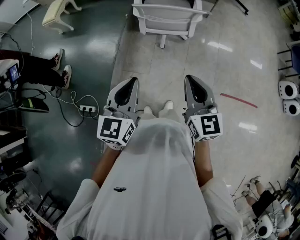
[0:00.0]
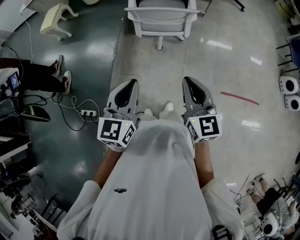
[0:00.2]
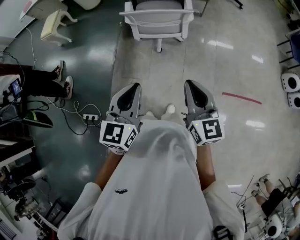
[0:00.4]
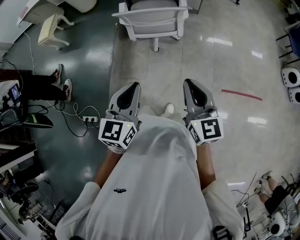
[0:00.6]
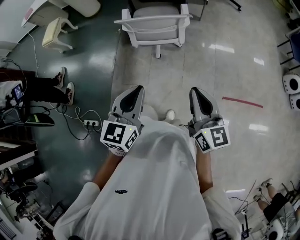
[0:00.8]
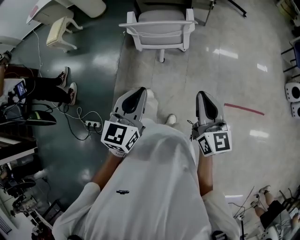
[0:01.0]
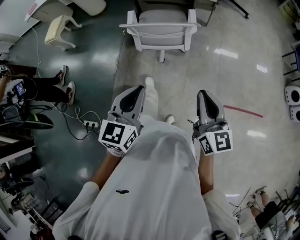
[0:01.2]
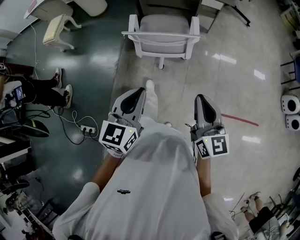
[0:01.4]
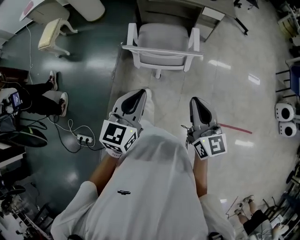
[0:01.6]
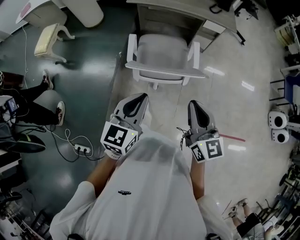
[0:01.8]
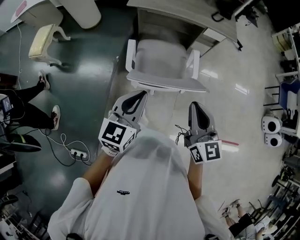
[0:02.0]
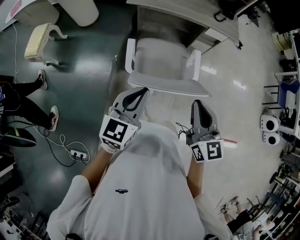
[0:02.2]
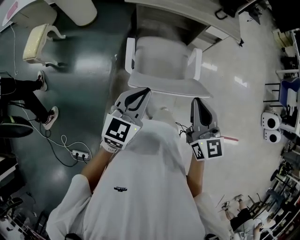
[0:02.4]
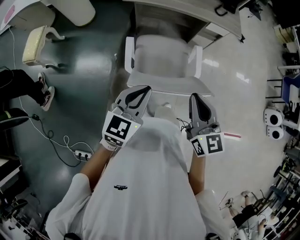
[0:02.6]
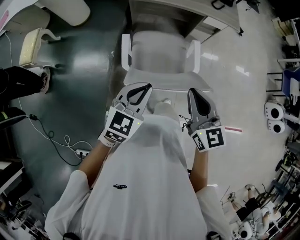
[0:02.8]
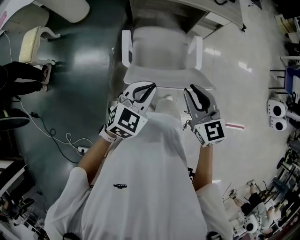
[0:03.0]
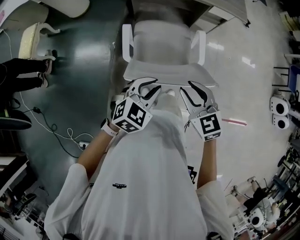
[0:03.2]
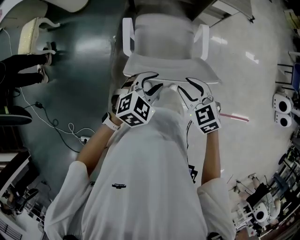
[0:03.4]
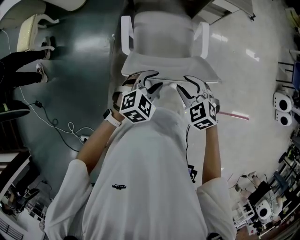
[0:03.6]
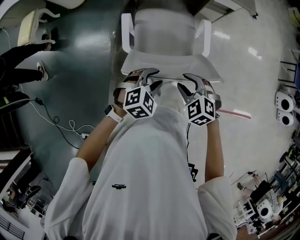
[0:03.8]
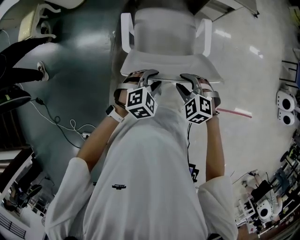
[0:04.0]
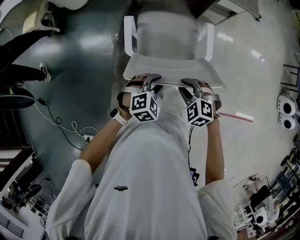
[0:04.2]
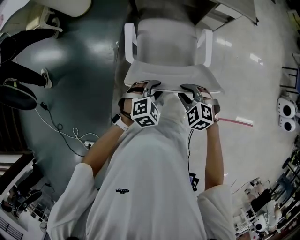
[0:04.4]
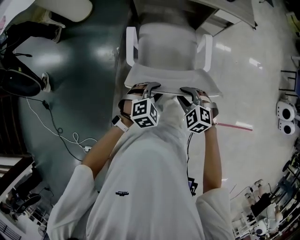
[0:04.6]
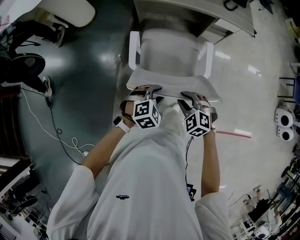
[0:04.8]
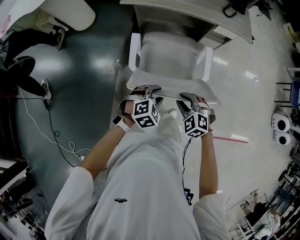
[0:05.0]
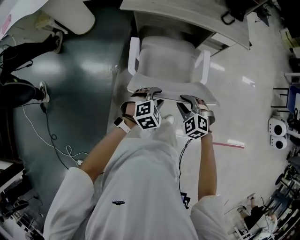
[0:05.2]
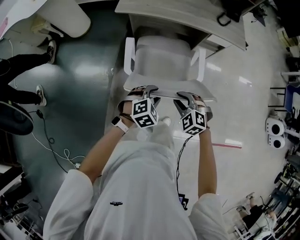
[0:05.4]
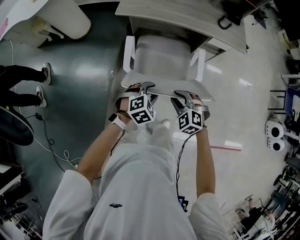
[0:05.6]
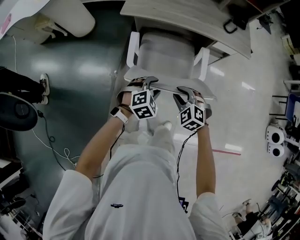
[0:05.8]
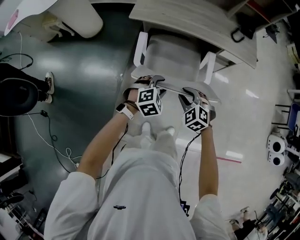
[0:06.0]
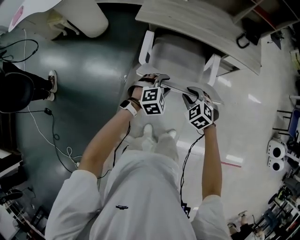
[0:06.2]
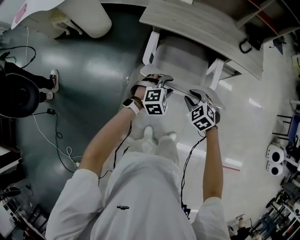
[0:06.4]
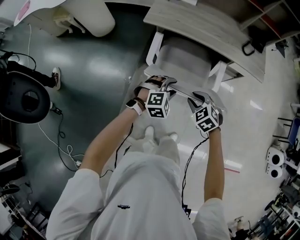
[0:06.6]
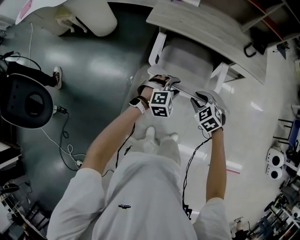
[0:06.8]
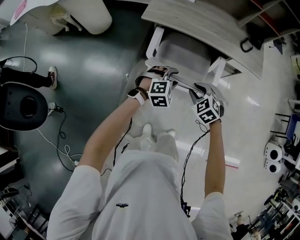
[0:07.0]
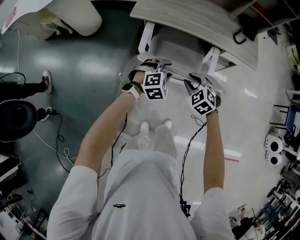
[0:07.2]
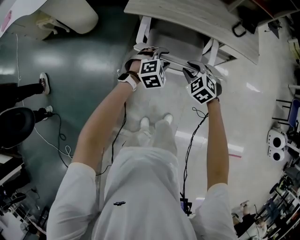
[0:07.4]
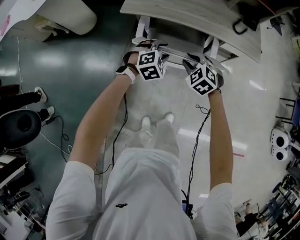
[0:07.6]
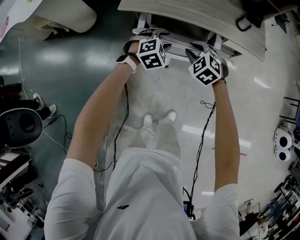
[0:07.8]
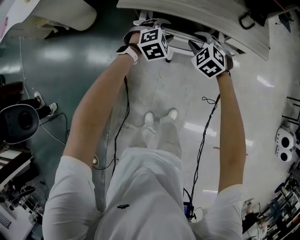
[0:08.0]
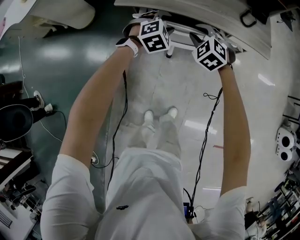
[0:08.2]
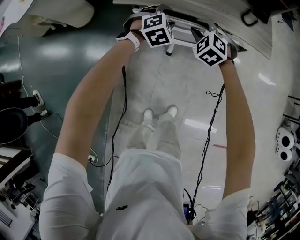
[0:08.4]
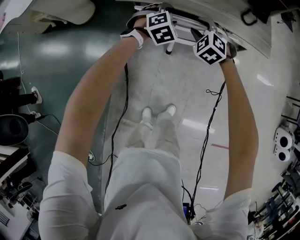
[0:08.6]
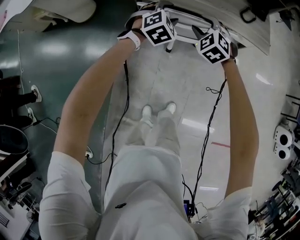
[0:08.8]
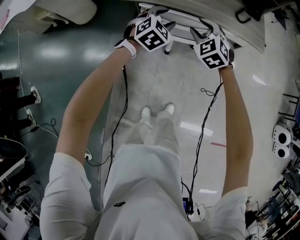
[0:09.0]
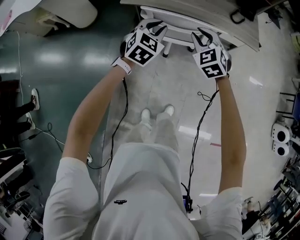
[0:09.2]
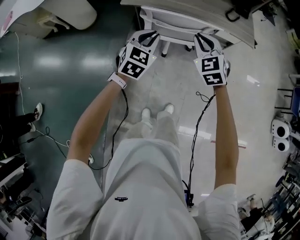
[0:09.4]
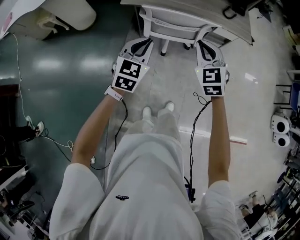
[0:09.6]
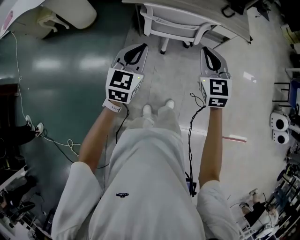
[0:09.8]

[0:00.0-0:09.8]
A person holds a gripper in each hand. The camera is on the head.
0:00.0 to 0:01.4: Both grippers travel together forward and to the right, approximately 15 cm.
0:01.4 to 0:02.8: The left gripper travels forward by approximately 30 cm, and rotates about 20 degrees. The right gripper is displaced forward and to the left by some 35 cm.
0:02.8 to 0:04.2: Both grippers move downward, some 20 cm. The left gripper tips its fingers downward by some 30 degrees, and opens up. Meanwhile the right gripper points its fingers roughly 40 degrees further downward, and opens up.
0:04.2 to 0:05.6: The two grippers go approximately 15 cm forward.
0:05.6 to 0:07.0: Both grippers travel together forward, some 15 cm.
0:07.0 to 0:08.4: Both grippers travel together forward, roughly 20 cm.
0:08.4 to 0:09.8: The two grippers go approximately 35 cm backward and upward. The left gripper tips its fingers upward by approximately 30 degrees, and closes. The right gripper swivels some 40 degrees, and closes up.

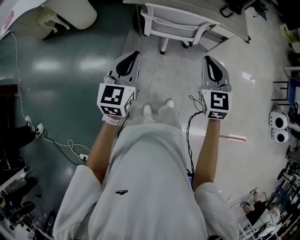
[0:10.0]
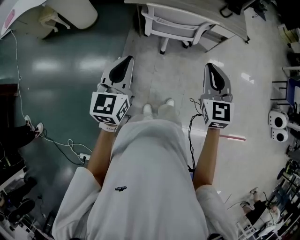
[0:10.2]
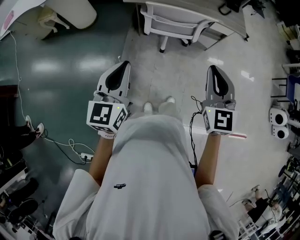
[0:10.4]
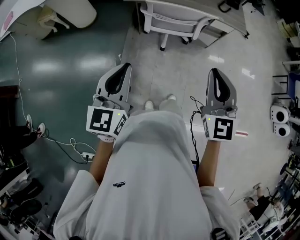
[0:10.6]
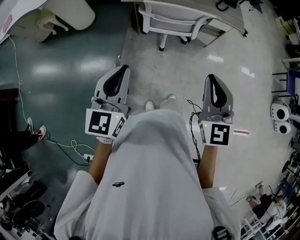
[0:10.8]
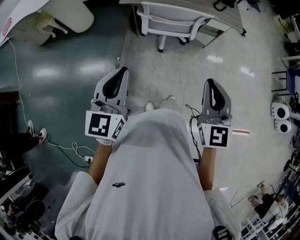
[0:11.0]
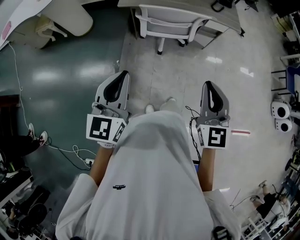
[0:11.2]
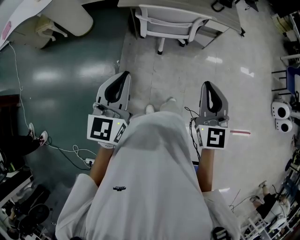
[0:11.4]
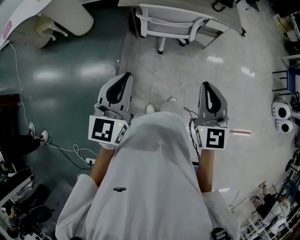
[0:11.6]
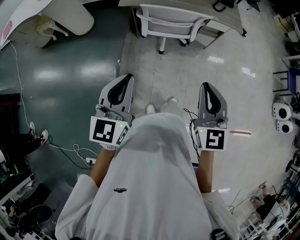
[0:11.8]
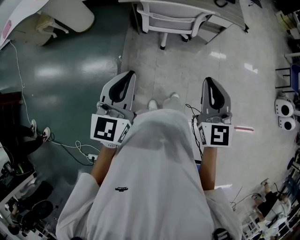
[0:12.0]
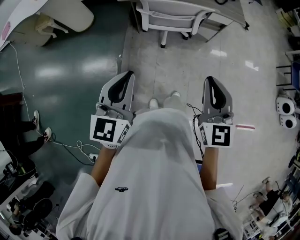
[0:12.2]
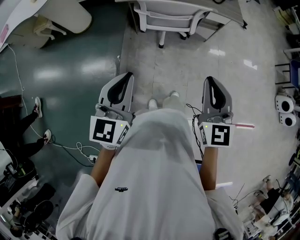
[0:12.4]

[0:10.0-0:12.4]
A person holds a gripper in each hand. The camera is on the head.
0:10.0 to 0:11.2: The right gripper shifts about 15 cm backward. Meanwhile the left gripper is displaced backward and upward by some 10 cm.
0:11.2 to 0:12.4: The grippers stay close to where they were, moving slightly.

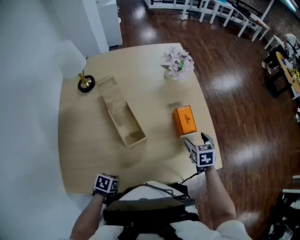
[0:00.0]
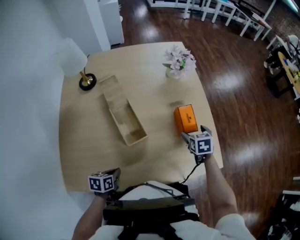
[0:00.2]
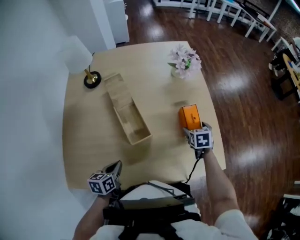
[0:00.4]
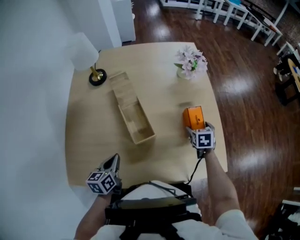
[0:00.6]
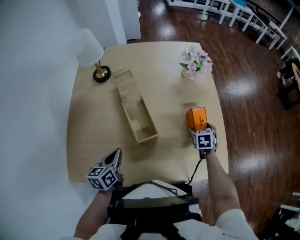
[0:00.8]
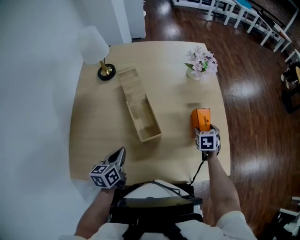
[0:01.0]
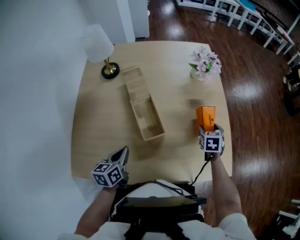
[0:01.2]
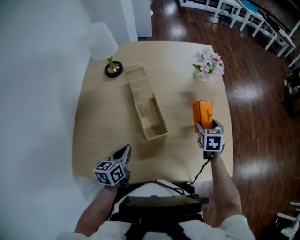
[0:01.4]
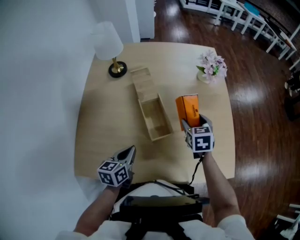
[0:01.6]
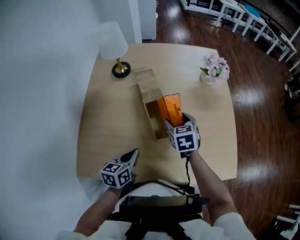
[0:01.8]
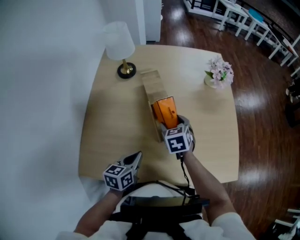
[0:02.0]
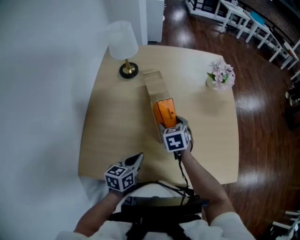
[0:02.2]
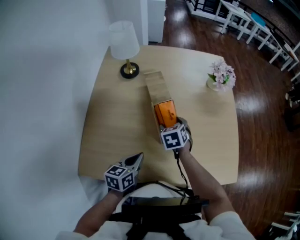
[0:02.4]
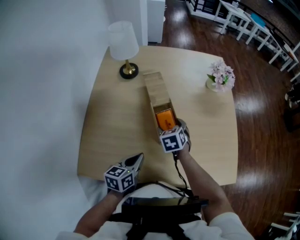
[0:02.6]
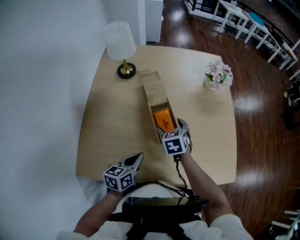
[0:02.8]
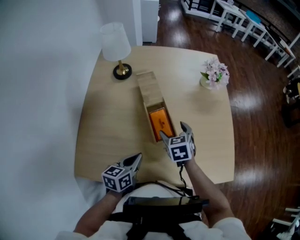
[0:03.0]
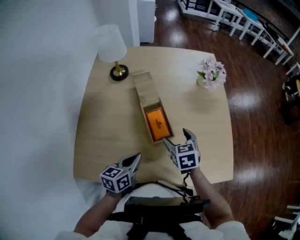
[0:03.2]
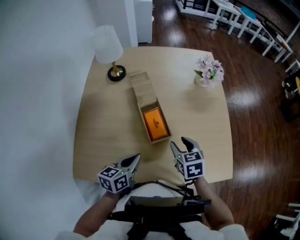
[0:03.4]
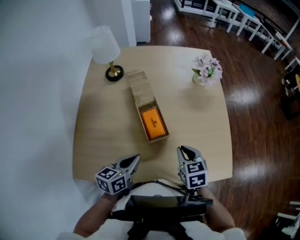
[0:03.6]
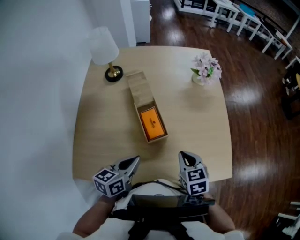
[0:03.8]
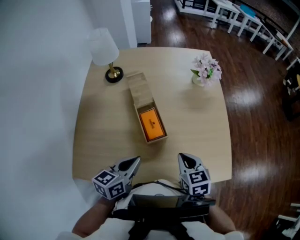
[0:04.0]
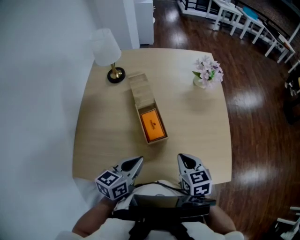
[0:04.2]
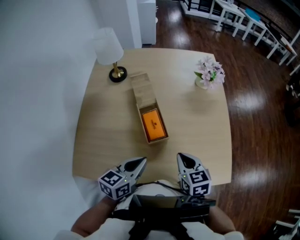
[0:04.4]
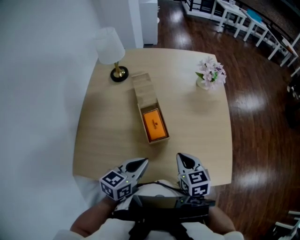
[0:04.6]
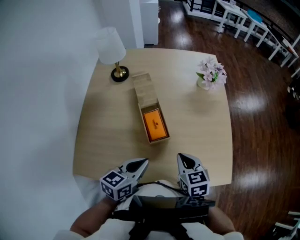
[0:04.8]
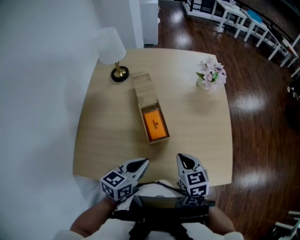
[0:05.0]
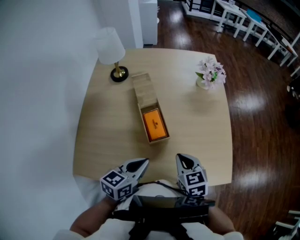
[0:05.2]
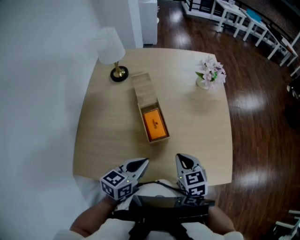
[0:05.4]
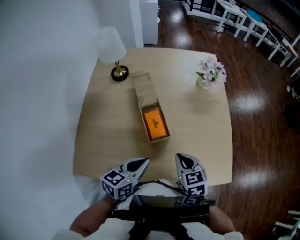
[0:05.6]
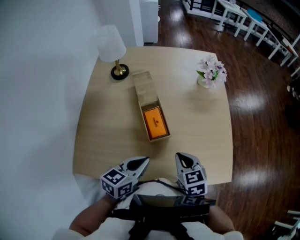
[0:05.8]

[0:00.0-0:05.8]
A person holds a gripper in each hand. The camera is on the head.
0:00.0 to 0:01.4: The right gripper moves some 5 cm downward and comes back. Meanwhile the left gripper moves upward, approximately 15 cm, and tilts its fingers roughly 40 degrees upward.
0:01.4 to 0:02.8: The right gripper travels to the left by some 25 cm.
0:02.8 to 0:04.4: The left gripper moves to the right and upward, approximately 10 cm; the right gripper travels to the right, backward and upward by about 20 cm, and closes.
0:04.4 to 0:05.8: There are only small adjustments of the grippers.

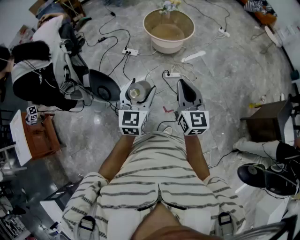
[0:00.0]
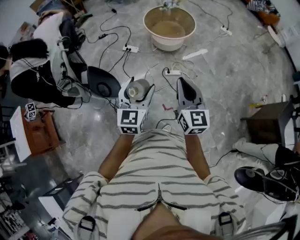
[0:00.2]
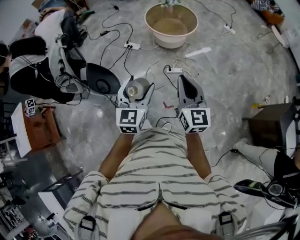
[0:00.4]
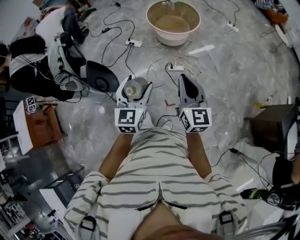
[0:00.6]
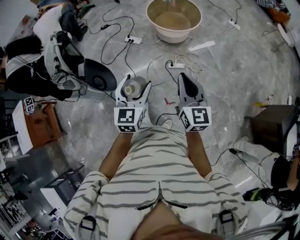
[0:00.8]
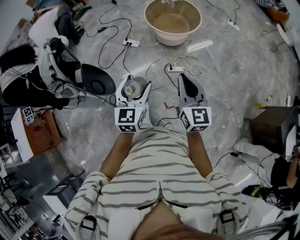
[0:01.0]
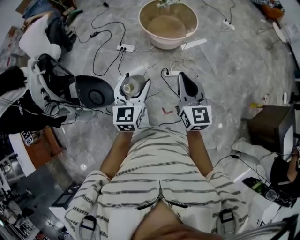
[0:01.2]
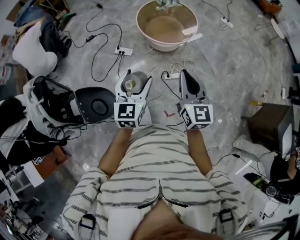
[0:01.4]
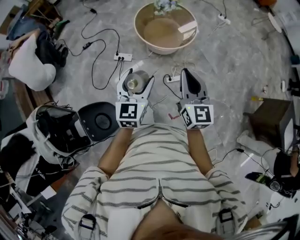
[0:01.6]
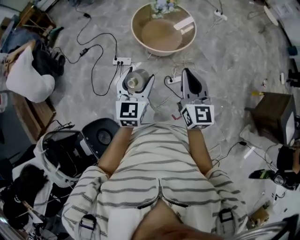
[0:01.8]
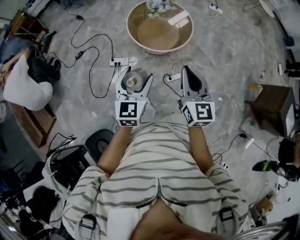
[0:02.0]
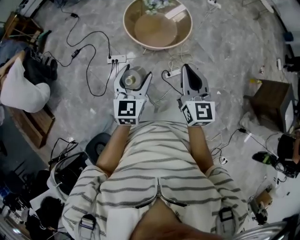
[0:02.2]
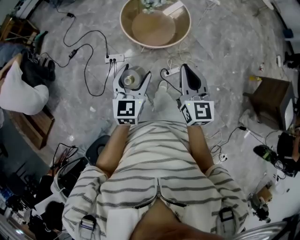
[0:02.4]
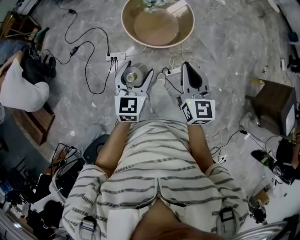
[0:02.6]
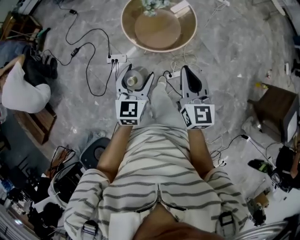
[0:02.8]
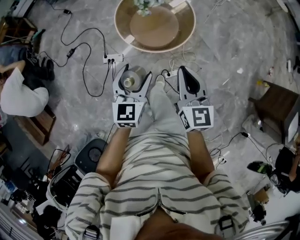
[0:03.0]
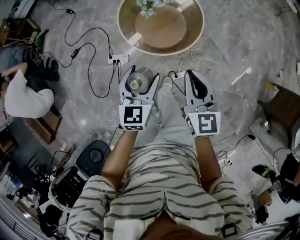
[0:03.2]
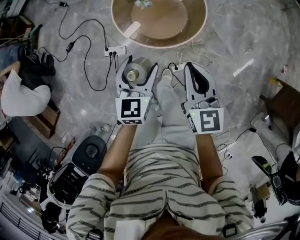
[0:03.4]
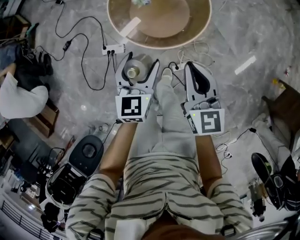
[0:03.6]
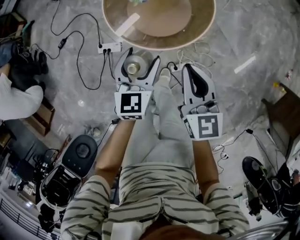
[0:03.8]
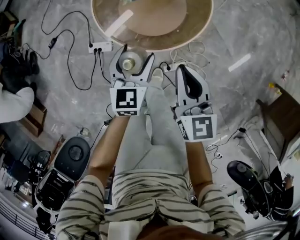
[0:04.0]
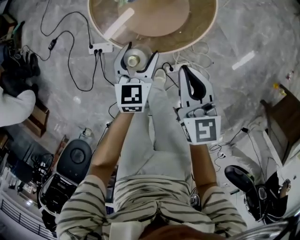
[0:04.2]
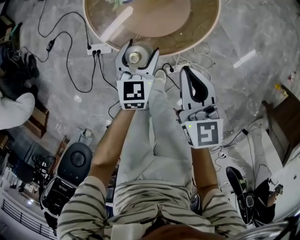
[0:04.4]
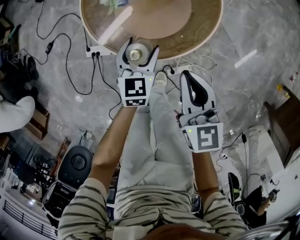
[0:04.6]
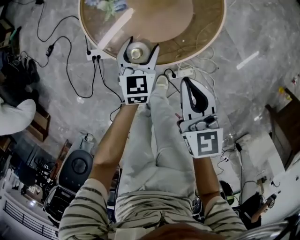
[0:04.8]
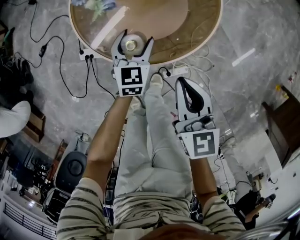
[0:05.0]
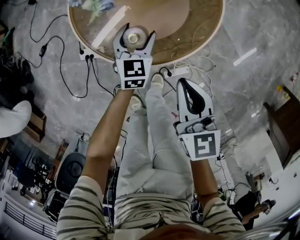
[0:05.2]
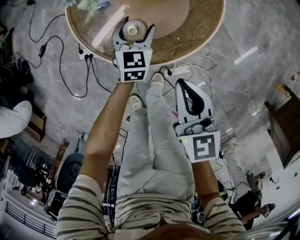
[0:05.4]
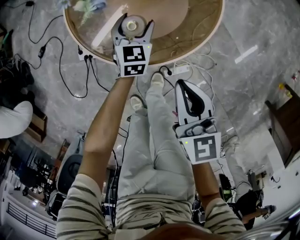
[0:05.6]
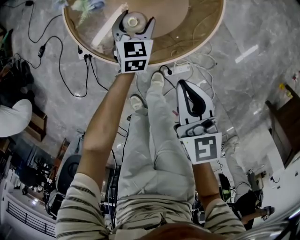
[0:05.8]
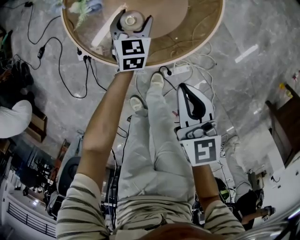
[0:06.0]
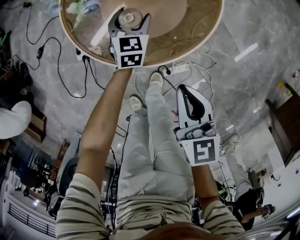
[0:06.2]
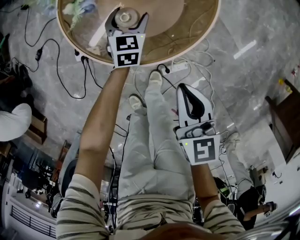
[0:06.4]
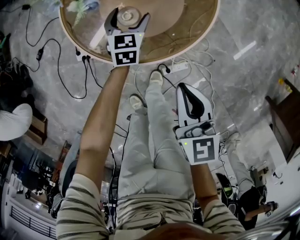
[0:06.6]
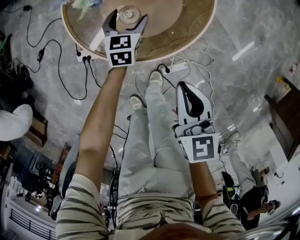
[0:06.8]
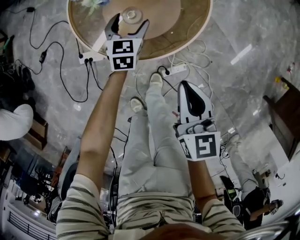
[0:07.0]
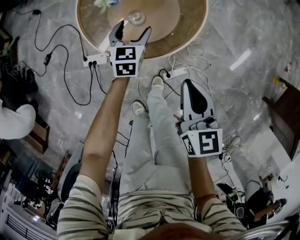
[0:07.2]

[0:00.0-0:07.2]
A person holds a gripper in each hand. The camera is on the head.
0:00.0 to 0:01.4: The two grippers go about 30 cm forward.
0:01.4 to 0:02.8: The two grippers go approximately 30 cm forward.
0:02.8 to 0:04.4: The grippers both shift downward and forward by roughly 40 cm.
0:04.4 to 0:05.8: The left gripper shifts some 20 cm downward and forward. Meanwhile the right gripper moves downward, approximately 5 cm.
0:05.8 to 0:07.2: The left gripper heads upward, covering some 10 cm; the right gripper goes some 10 cm upward and backward.
